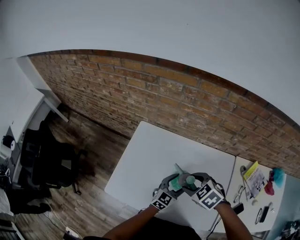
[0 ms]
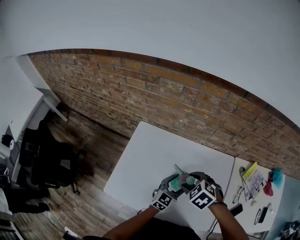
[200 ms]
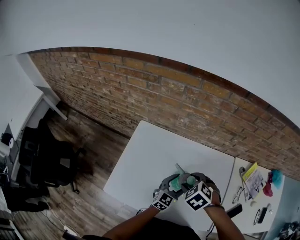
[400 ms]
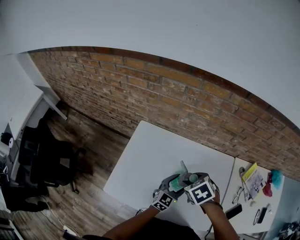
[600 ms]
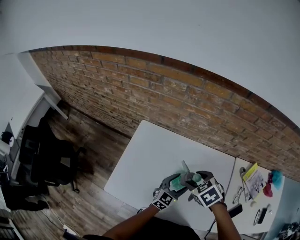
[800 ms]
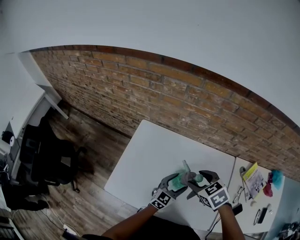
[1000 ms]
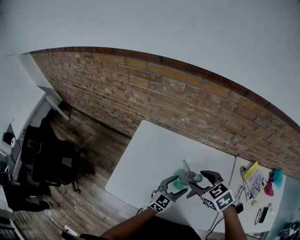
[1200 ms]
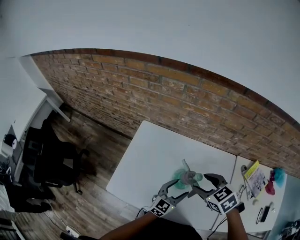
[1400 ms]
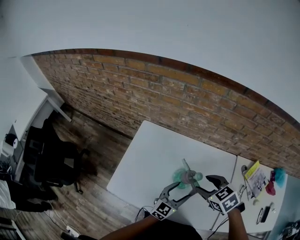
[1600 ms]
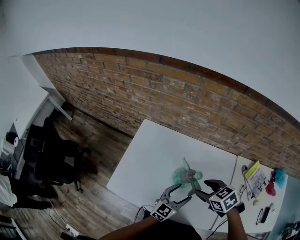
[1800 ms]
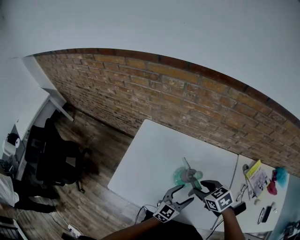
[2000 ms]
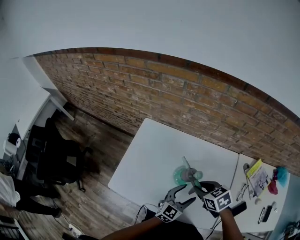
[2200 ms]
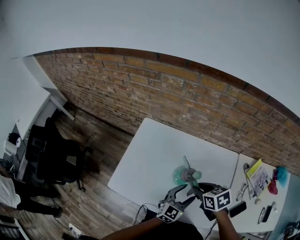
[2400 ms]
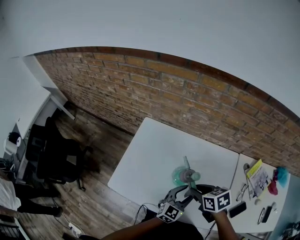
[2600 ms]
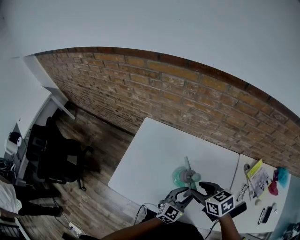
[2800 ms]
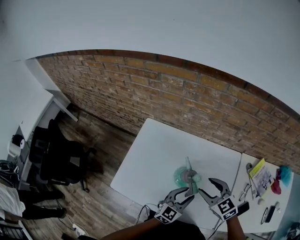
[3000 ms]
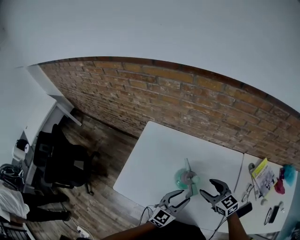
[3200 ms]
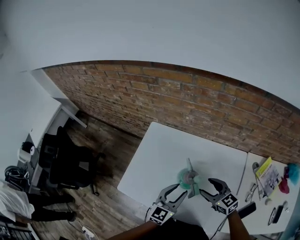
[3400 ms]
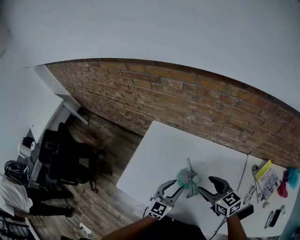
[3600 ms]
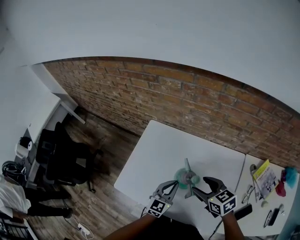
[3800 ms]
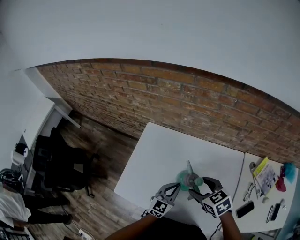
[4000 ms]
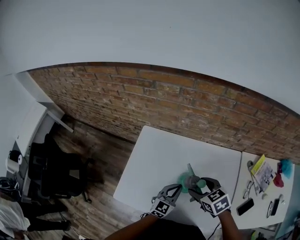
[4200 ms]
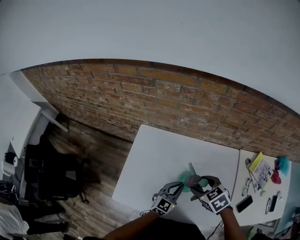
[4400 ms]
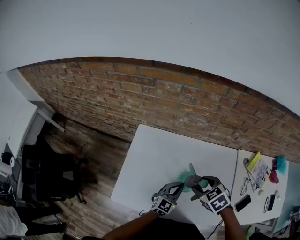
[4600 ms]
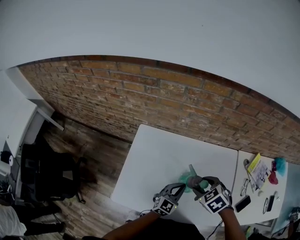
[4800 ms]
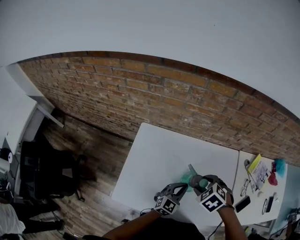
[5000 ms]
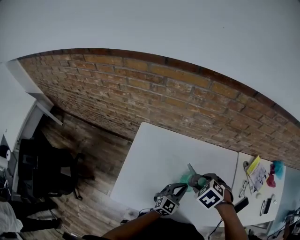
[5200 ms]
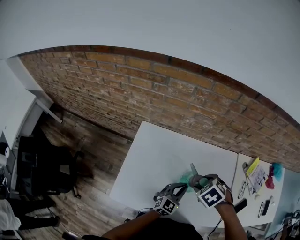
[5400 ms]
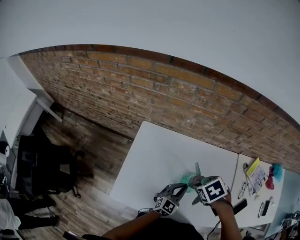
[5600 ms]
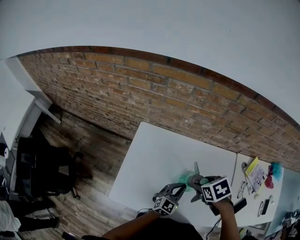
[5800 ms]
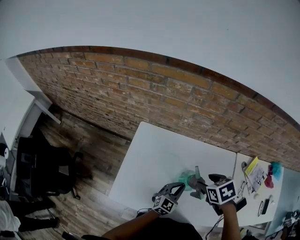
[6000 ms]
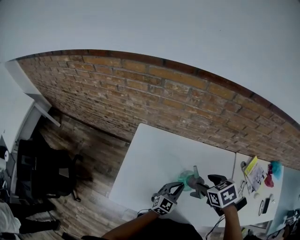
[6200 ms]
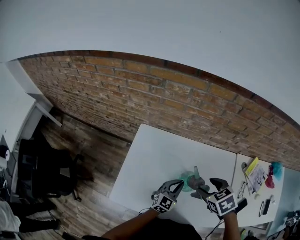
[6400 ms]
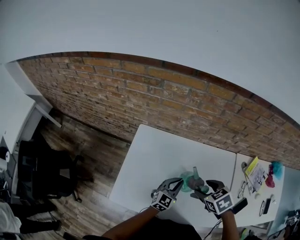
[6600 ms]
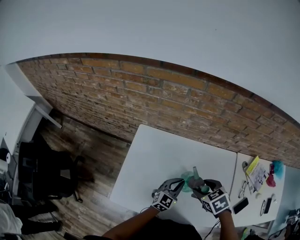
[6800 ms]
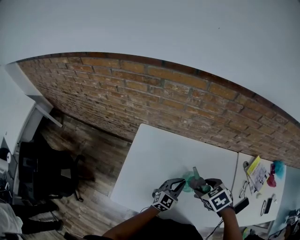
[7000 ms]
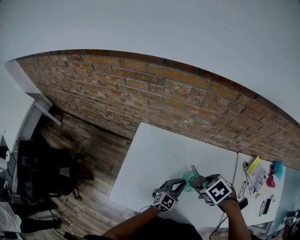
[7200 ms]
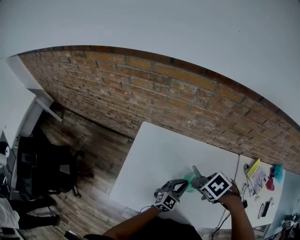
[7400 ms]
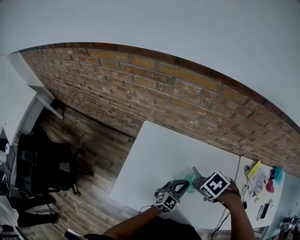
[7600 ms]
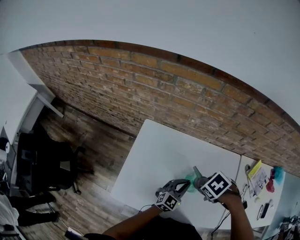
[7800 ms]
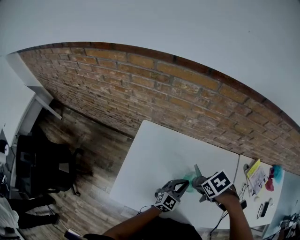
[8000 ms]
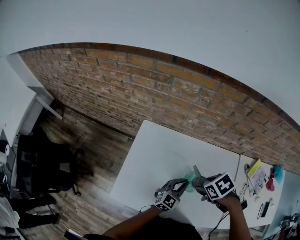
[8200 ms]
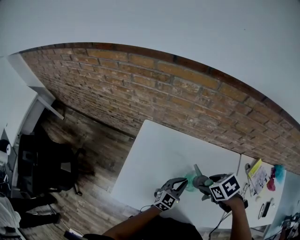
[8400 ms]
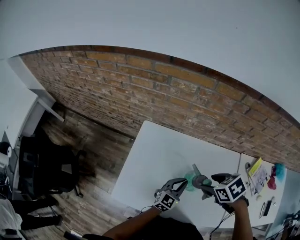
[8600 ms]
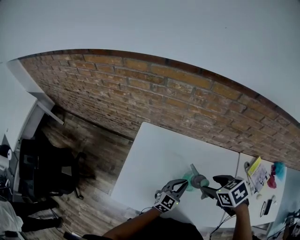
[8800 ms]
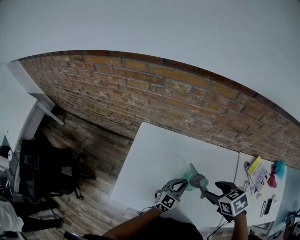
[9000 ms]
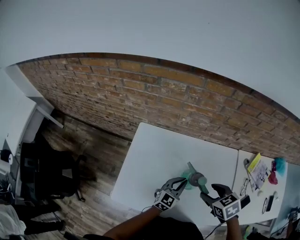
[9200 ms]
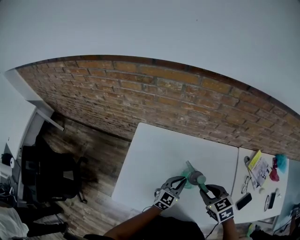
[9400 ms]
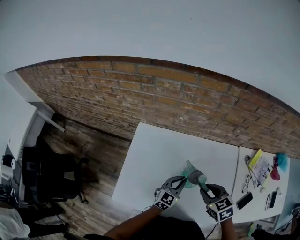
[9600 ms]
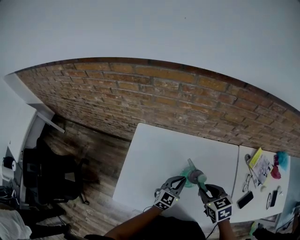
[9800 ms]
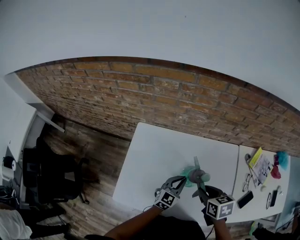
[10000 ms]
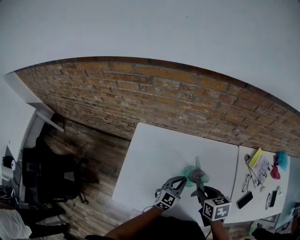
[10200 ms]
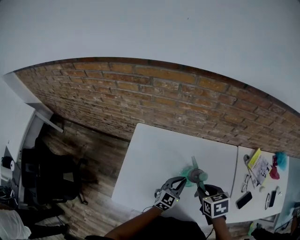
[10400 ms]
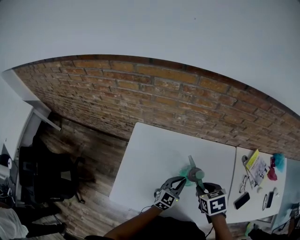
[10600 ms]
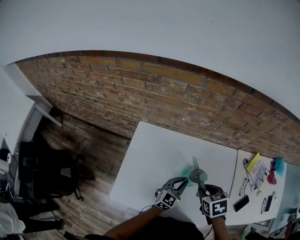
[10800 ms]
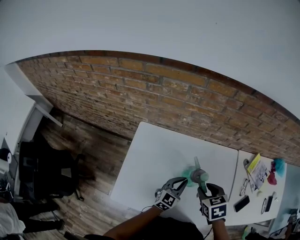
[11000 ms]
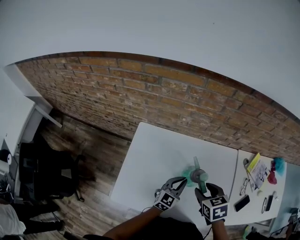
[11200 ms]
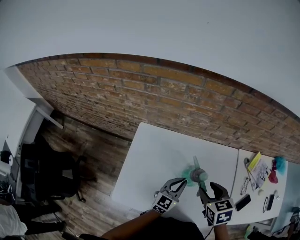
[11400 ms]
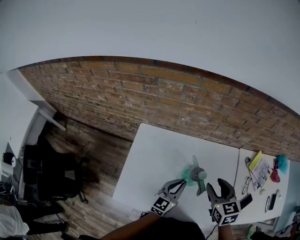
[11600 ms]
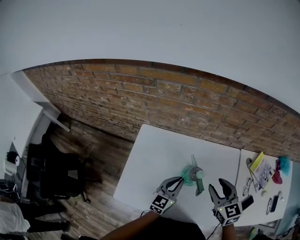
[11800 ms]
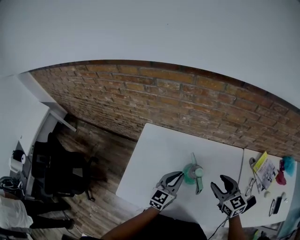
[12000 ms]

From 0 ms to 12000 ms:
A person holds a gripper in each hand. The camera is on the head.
From 0 ms to 1600 ms: The left gripper heads backward, covering approximately 5 cm, while the right gripper heads to the right, covering about 5 cm.
From 3000 ms to 4400 ms: The right gripper moves to the left, roughly 5 cm, and swivels approximately 20 degrees. Meanwhile the left gripper heads forward and to the left, covering about 10 cm.
From 6000 ms to 7600 ms: The right gripper turns by about 30 degrees.
From 7600 ms to 9000 ms: The right gripper moves upward, roughly 5 cm, and swivels roughly 30 degrees.
From 10400 ms to 12000 ms: The right gripper goes some 5 cm to the right, and tilts its fingers some 40 degrees upward; the left gripper is displaced upward by roughly 10 cm.

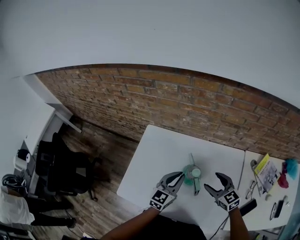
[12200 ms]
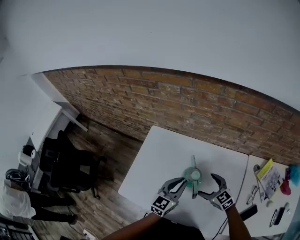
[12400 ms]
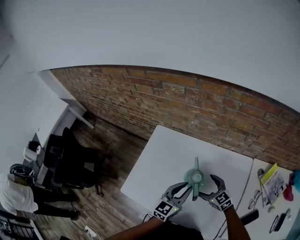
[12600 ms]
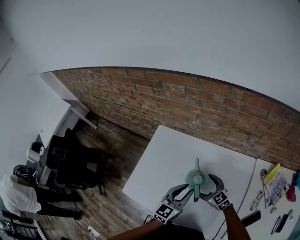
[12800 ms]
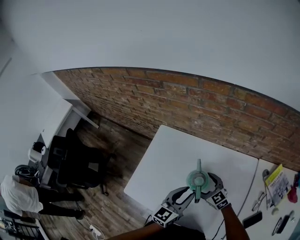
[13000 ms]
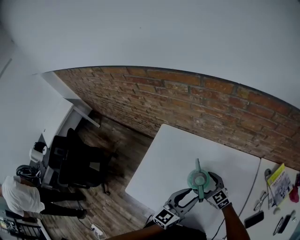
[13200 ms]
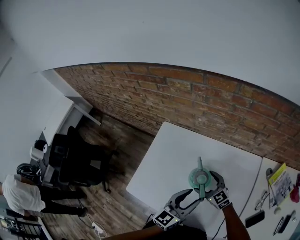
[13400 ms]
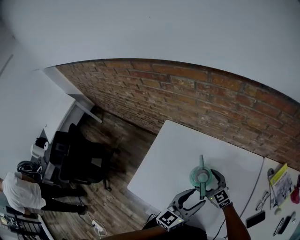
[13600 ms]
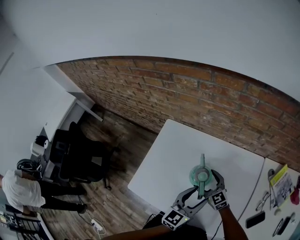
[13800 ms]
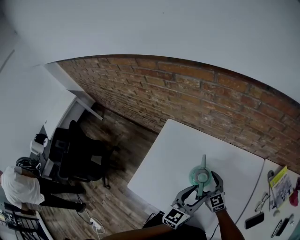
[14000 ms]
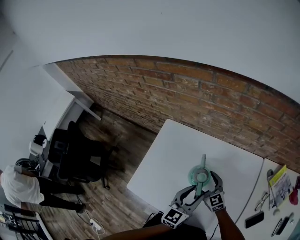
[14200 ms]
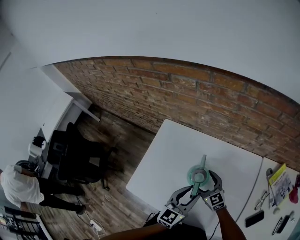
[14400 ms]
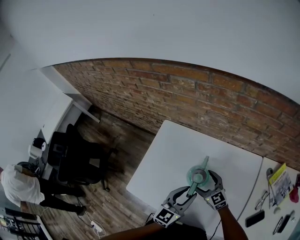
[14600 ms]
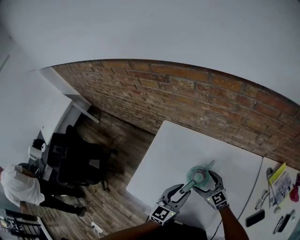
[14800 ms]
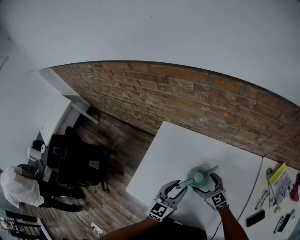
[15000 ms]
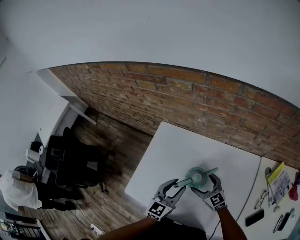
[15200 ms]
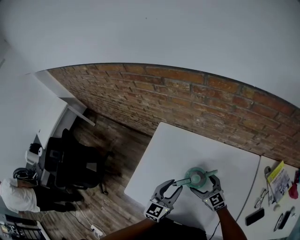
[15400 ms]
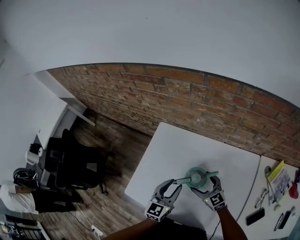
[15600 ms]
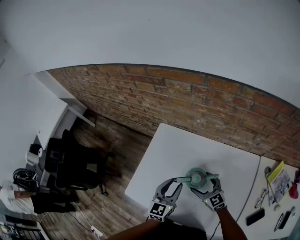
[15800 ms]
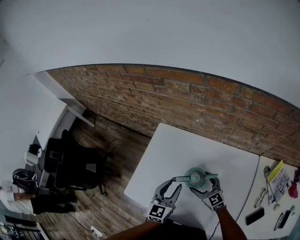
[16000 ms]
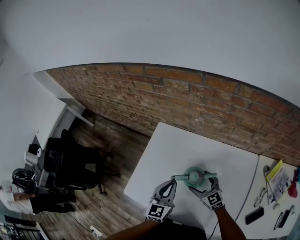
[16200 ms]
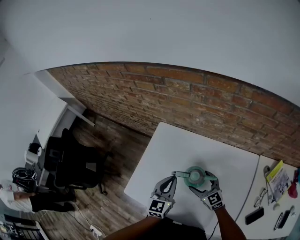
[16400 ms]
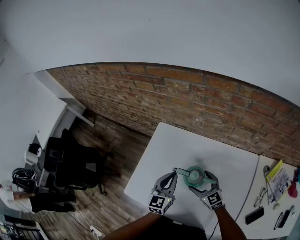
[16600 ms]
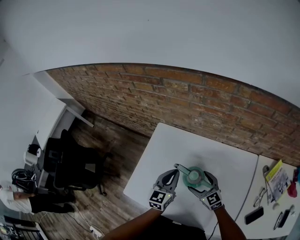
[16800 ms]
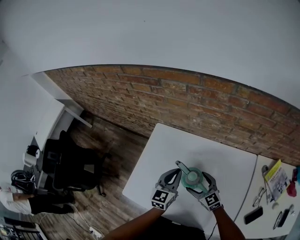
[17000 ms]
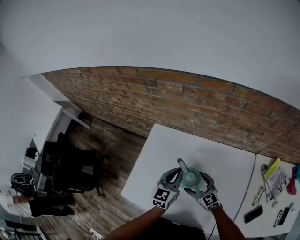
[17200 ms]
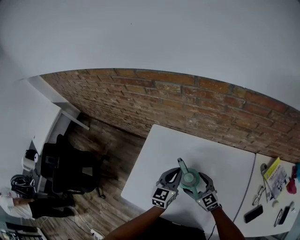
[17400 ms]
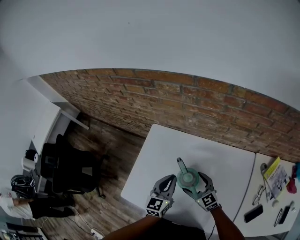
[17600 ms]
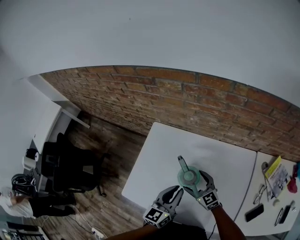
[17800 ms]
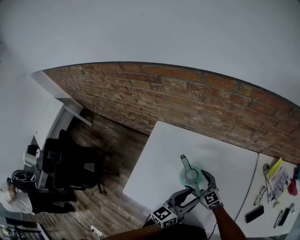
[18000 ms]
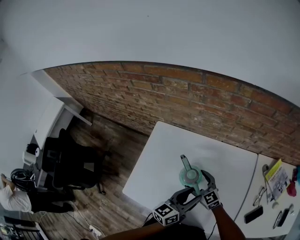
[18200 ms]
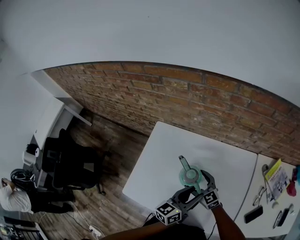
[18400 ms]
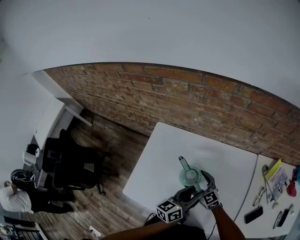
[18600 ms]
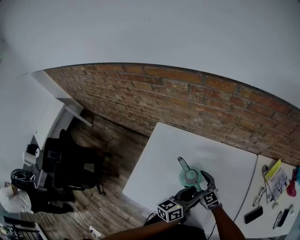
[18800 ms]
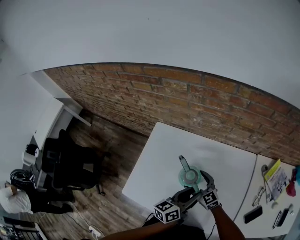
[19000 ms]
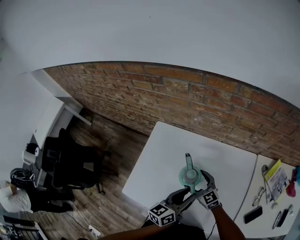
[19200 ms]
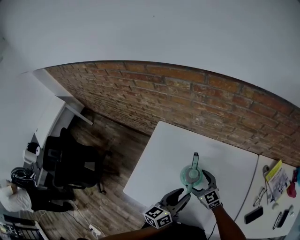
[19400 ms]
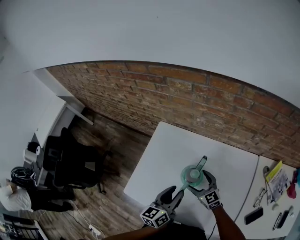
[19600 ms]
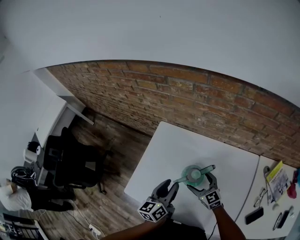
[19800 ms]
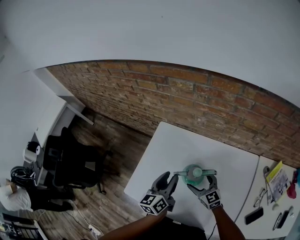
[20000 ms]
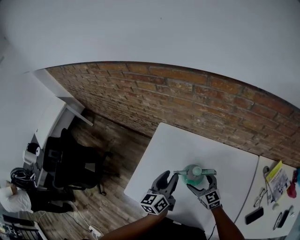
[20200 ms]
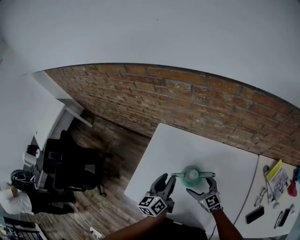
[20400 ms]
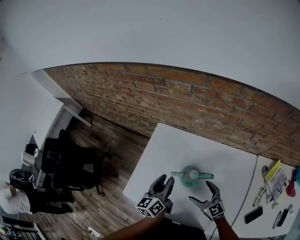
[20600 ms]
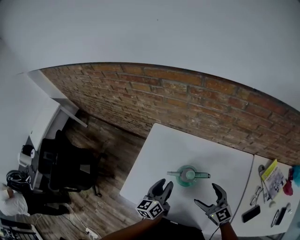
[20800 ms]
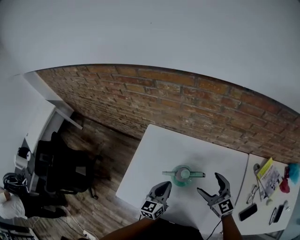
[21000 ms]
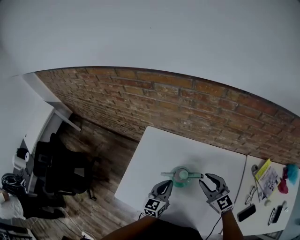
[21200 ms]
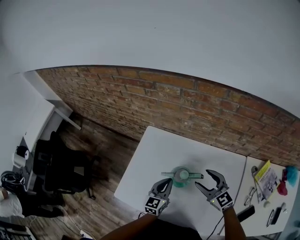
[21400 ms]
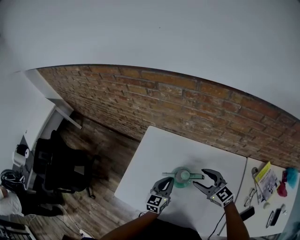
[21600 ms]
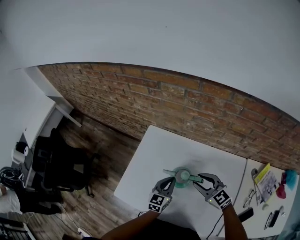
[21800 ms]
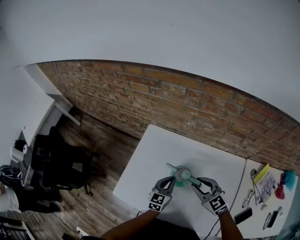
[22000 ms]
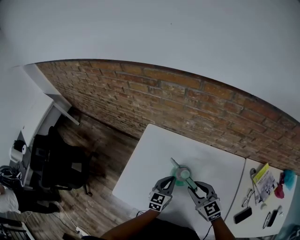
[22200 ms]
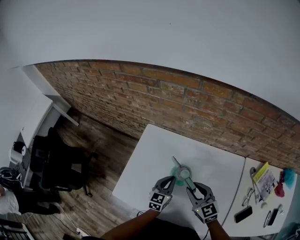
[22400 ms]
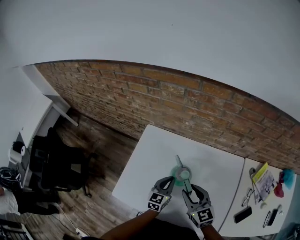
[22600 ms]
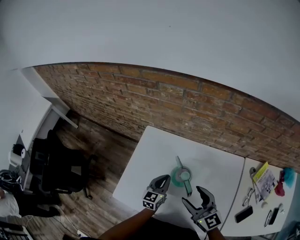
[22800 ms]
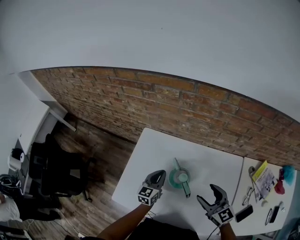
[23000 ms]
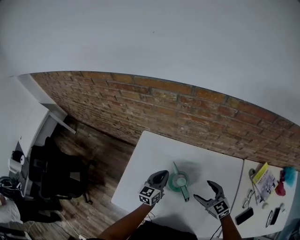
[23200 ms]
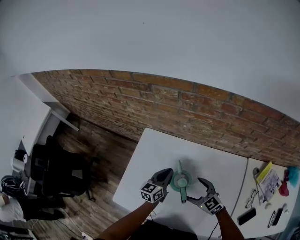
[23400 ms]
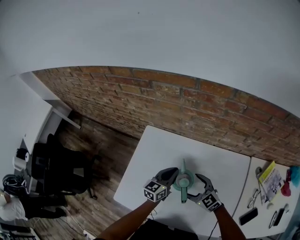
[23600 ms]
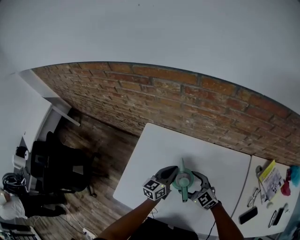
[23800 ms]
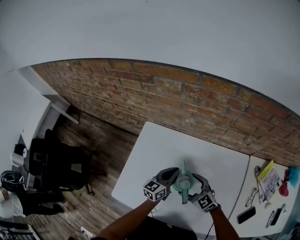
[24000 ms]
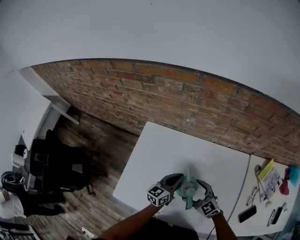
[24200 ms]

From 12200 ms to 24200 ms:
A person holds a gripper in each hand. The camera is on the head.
From 12200 ms to 13800 ms: The left gripper goes about 5 cm backward, and opens; the right gripper shifts some 15 cm to the left, downward and forward, and opens.
From 13800 ms to 15200 ms: The left gripper goes approximately 10 cm to the left and forward.
From 15200 ms to 16600 ms: The left gripper shifts by roughly 5 cm.
From 16600 ms to 18200 ms: The left gripper is displaced to the right and backward by roughly 15 cm, rotates some 40 degrees, and opens.
From 18200 ms to 19800 ms: The left gripper moves to the left, roughly 15 cm, and changes its angle by some 30 degrees.
From 19800 ms to 21200 ms: The right gripper goes some 15 cm upward and to the right, and closes up; the left gripper shifts roughly 5 cm downward, and changes its angle by approximately 20 degrees.
From 21200 ms to 22600 ms: The right gripper is displaced to the left by roughly 10 cm.
From 22600 ms to 24200 ms: The right gripper goes approximately 10 cm downward, swivels approximately 20 degrees, and opens its fingers; the left gripper swivels roughly 20 degrees.
